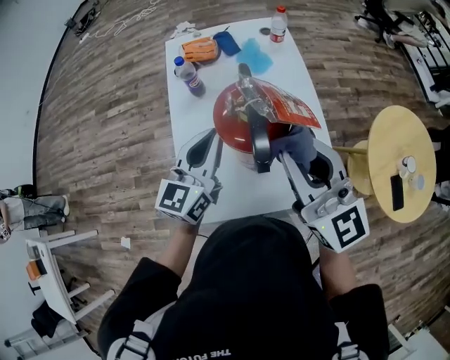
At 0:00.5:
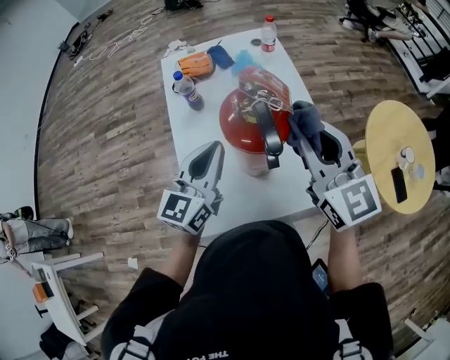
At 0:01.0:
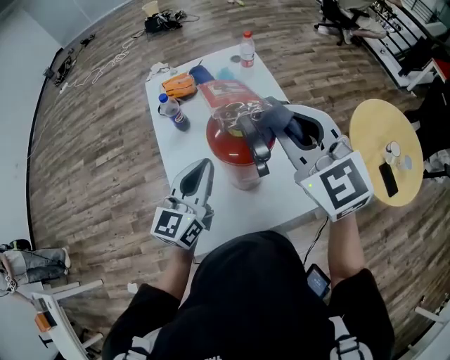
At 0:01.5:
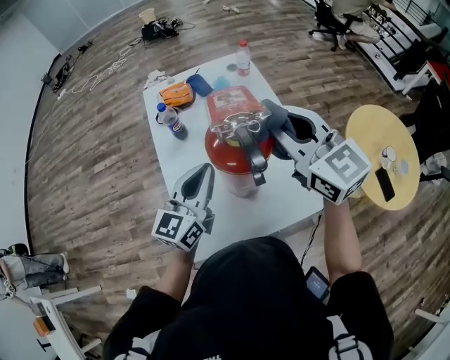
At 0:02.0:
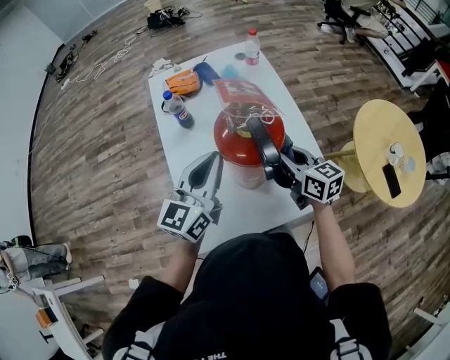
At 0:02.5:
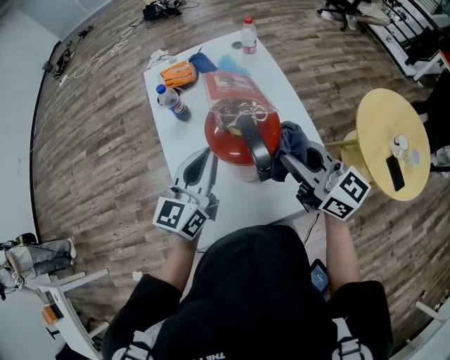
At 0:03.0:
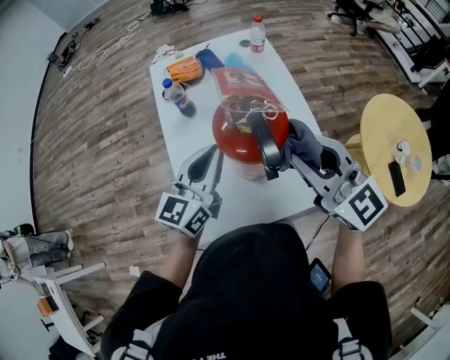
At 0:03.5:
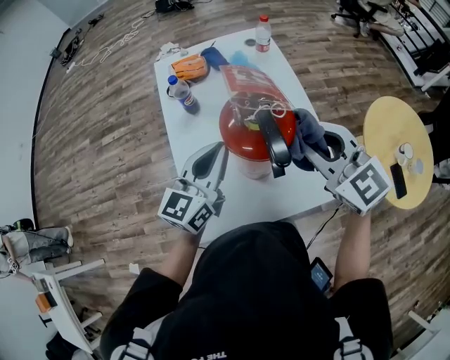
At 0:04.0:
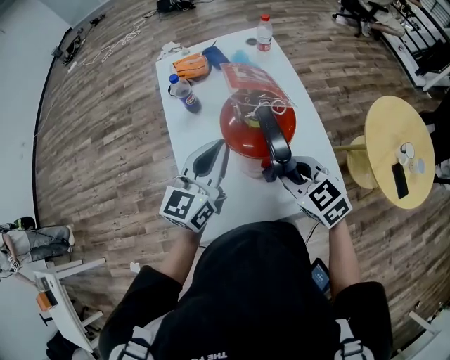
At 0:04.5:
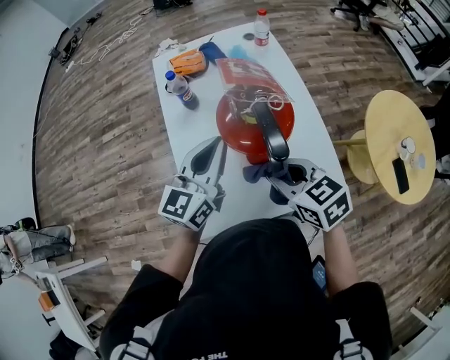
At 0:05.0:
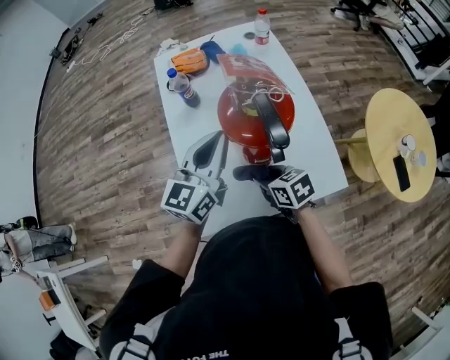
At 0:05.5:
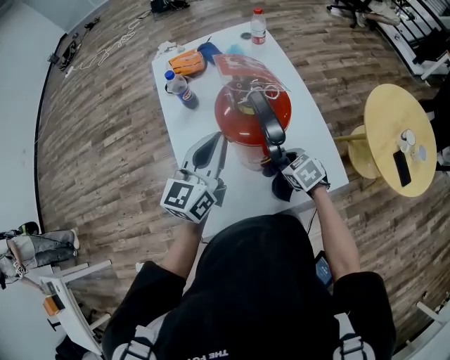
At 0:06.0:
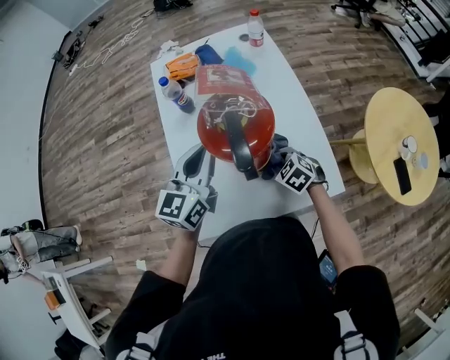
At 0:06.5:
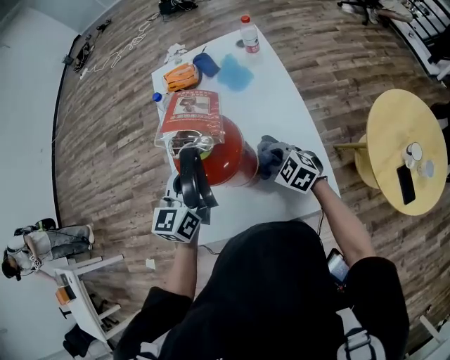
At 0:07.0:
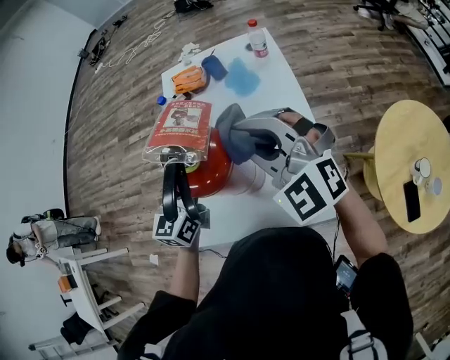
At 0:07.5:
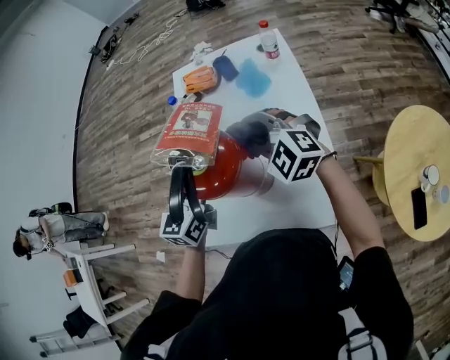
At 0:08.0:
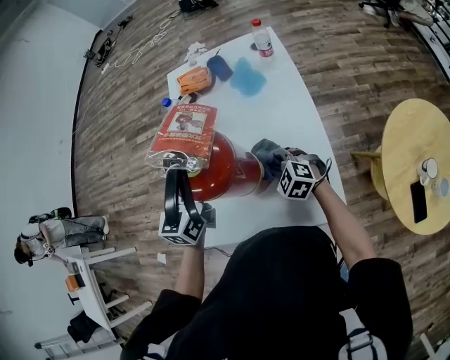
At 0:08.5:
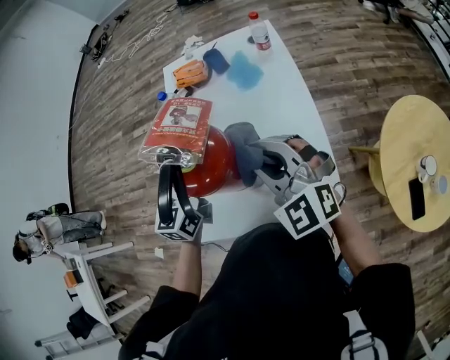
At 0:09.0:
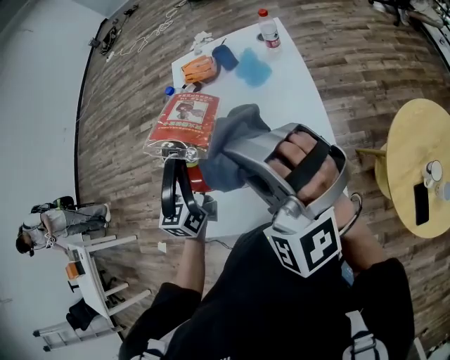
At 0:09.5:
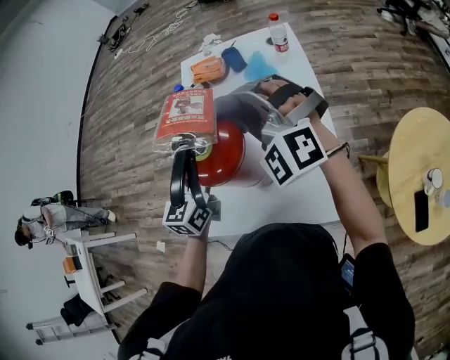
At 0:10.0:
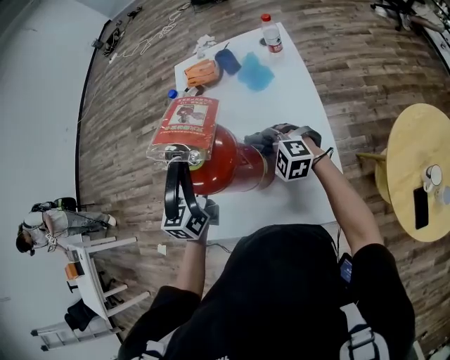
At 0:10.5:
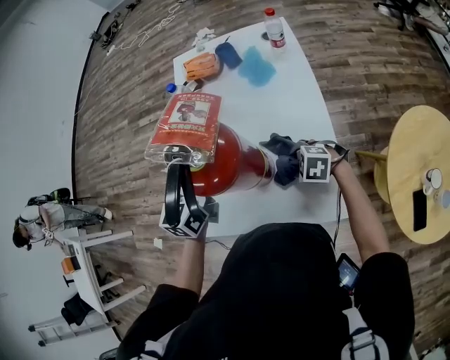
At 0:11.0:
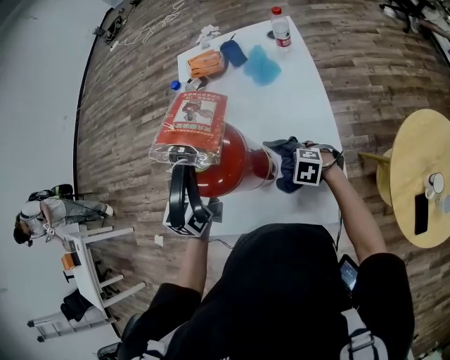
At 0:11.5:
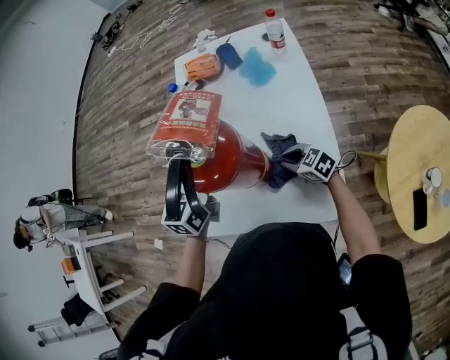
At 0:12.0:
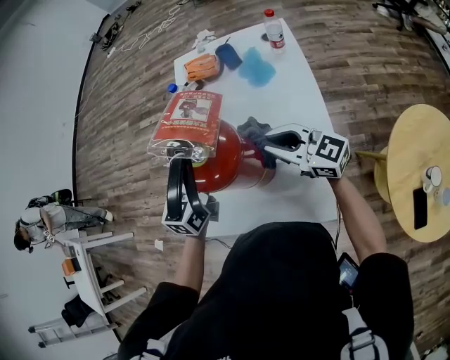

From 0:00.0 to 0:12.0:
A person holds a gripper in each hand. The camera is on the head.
From 0:00.0 to 0:02.0: The right gripper is displaced downward by some 20 cm, and swivels some 40 degrees.
From 0:02.0 to 0:04.0: The right gripper moves backward, roughly 5 cm, reaches about 20 cm upward, then returns, and rotates roughly 40 degrees.
From 0:04.0 to 0:06.0: The right gripper is displaced downward by some 20 cm, and changes its angle by roughly 20 degrees.
From 0:06.0 to 0:08.0: The right gripper is displaced forward by about 5 cm, travels upward and back again, about 35 cm each way, and changes its angle by about 30 degrees. Meanwhile the left gripper turns by some 20 degrees.
From 0:08.0 to 0:10.0: The right gripper moves roughly 35 cm upward and comes back.
From 0:10.0 to 0:12.0: The right gripper heads upward, covering some 10 cm, tips its fingers upward by some 40 degrees, and opens, then closes again.

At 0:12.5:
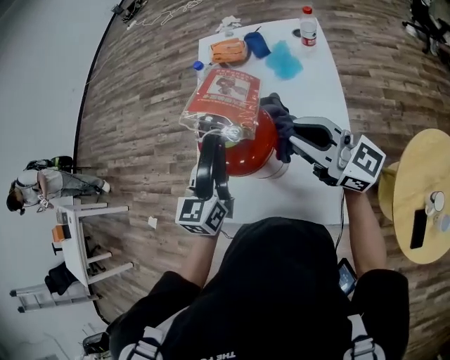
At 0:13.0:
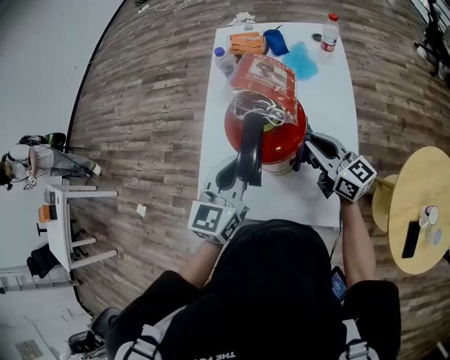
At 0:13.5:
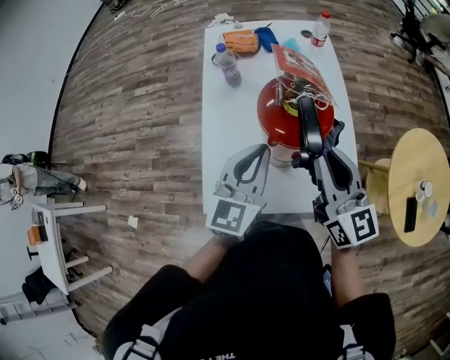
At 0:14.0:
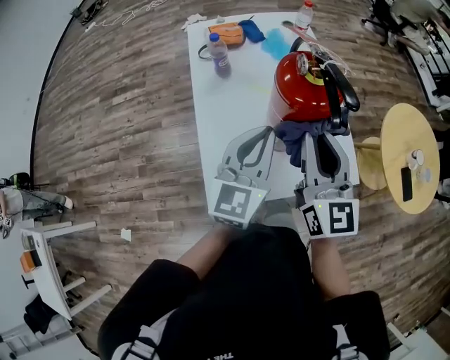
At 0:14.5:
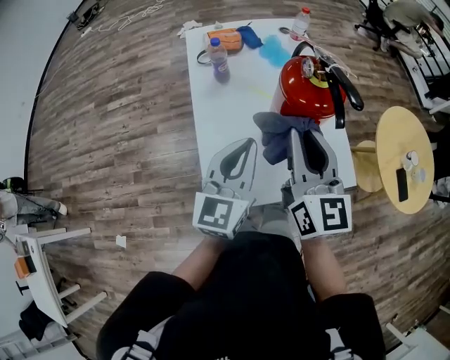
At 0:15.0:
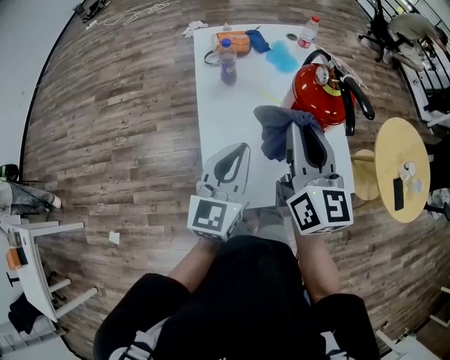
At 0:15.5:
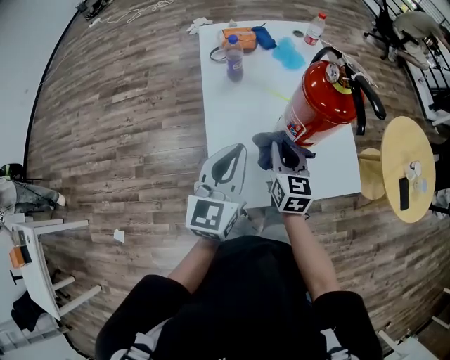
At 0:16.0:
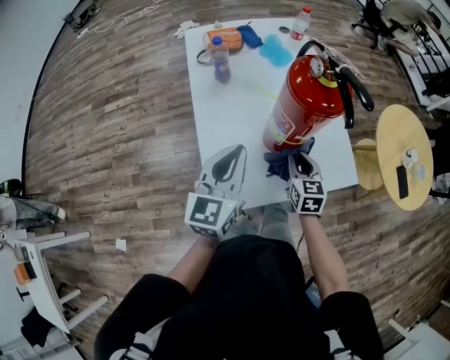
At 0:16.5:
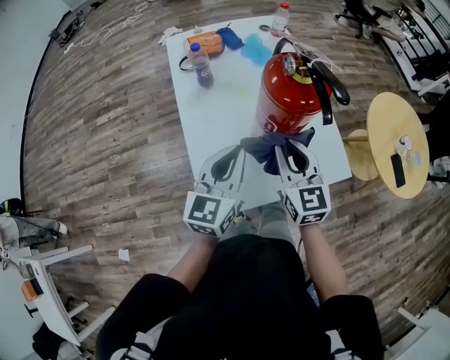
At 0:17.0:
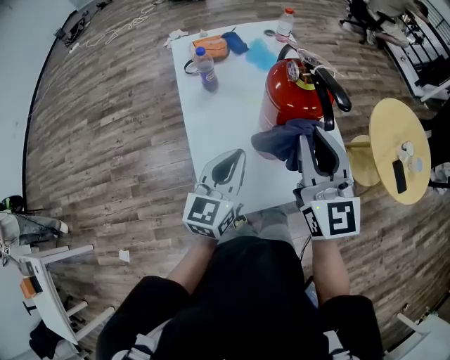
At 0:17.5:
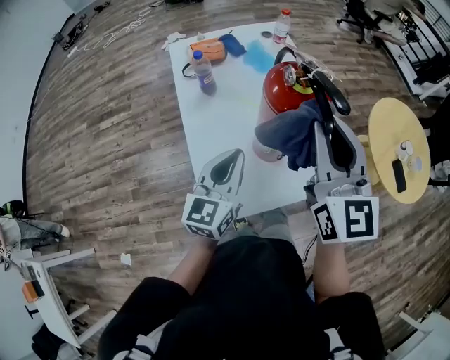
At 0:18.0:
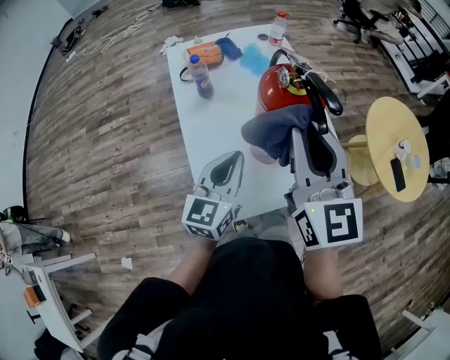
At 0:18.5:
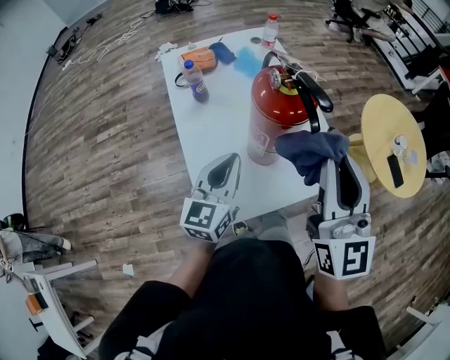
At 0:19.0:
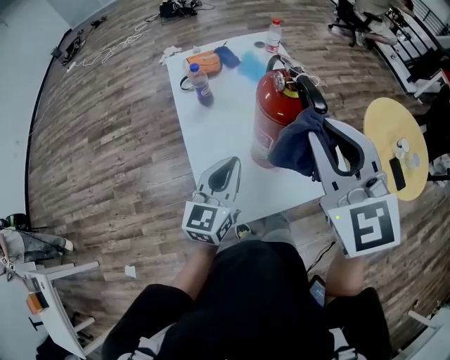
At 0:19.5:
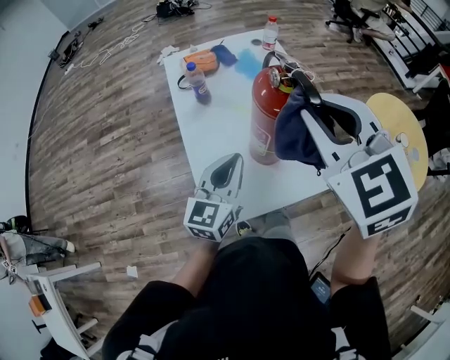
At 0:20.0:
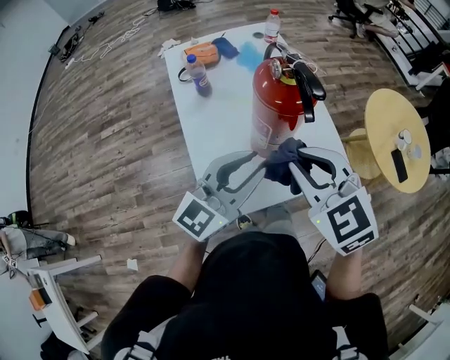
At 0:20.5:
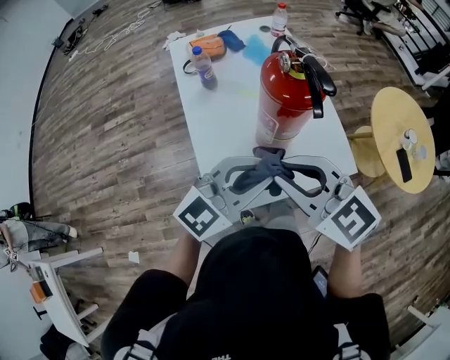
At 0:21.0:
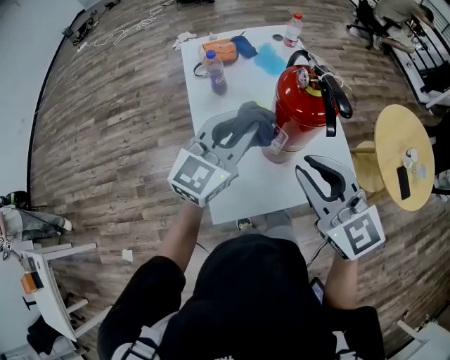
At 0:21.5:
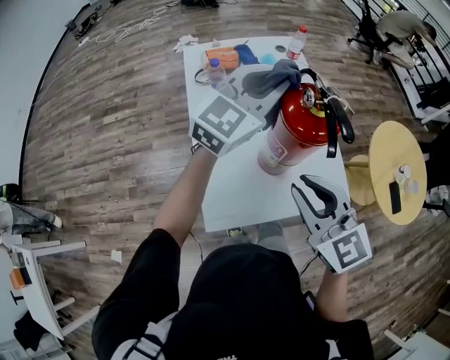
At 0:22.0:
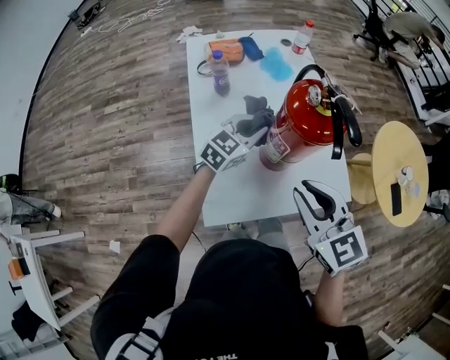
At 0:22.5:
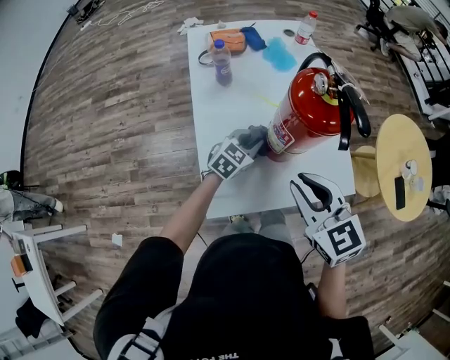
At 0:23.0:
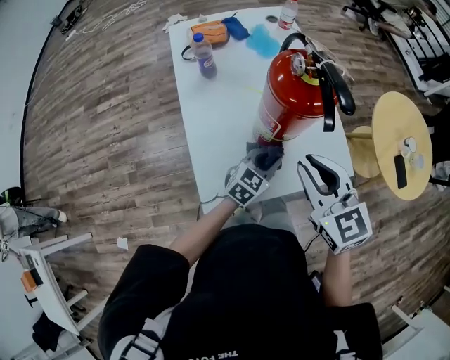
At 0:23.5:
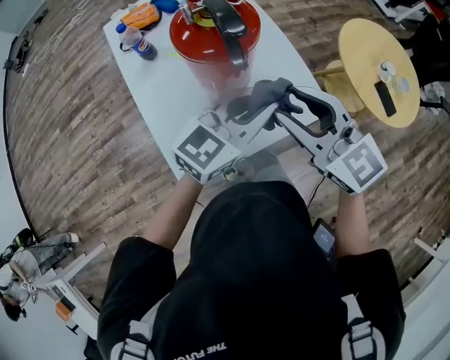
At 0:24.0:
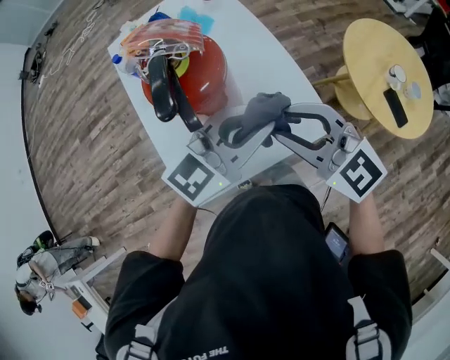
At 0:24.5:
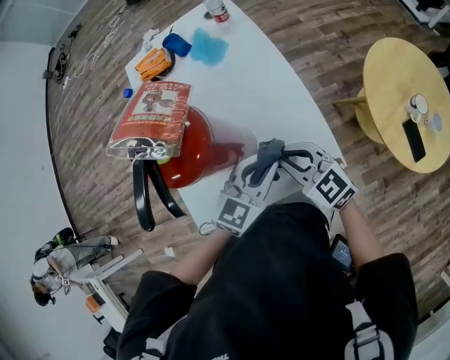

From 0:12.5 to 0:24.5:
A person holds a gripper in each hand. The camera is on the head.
From 0:12.5 to 0:14.5: The left gripper changes place by roughly 10 cm, and rotates approximately 20 degrees. The right gripper reaches some 10 cm downward, then returns, and swivels some 60 degrees.
From 0:14.5 to 0:16.5: The right gripper moves downward, some 10 cm.
From 0:16.5 to 0:18.5: The right gripper is displaced upward by about 20 cm, and turns by about 30 degrees.
From 0:18.5 to 0:20.5: The right gripper goes about 15 cm to the left and downward, and angles its fingers downward, by about 30 degrees. Meanwhile the left gripper moves backward, to the right and upward, about 10 cm, and turns by about 40 degrees.
From 0:20.5 to 0:22.5: The left gripper moves downward and forward, about 30 cm, and changes its angle by roughly 40 degrees; the right gripper goes approximately 5 cm downward.
From 0:22.5 to 0:24.5: The left gripper goes approximately 25 cm to the right and upward. The right gripper is displaced to the right, downward and forward by some 20 cm.

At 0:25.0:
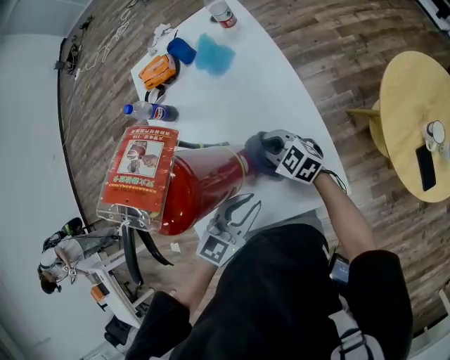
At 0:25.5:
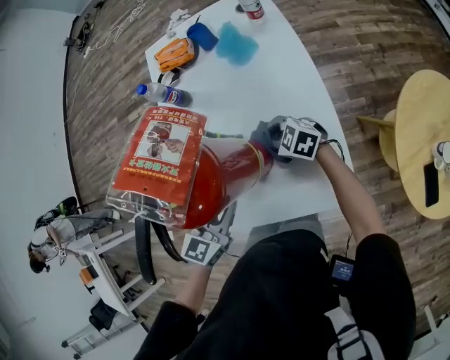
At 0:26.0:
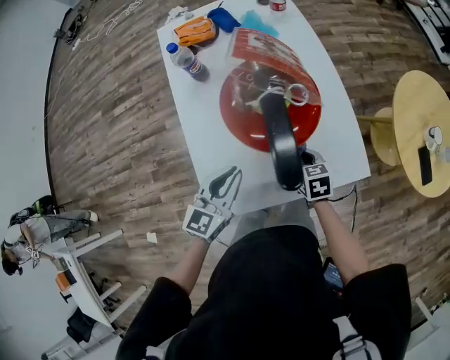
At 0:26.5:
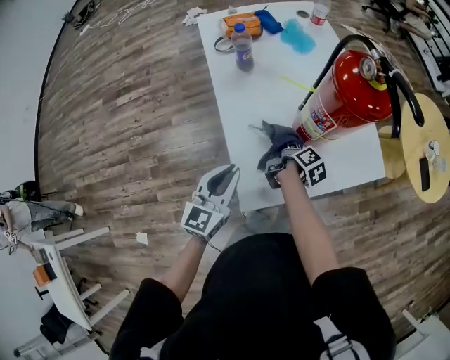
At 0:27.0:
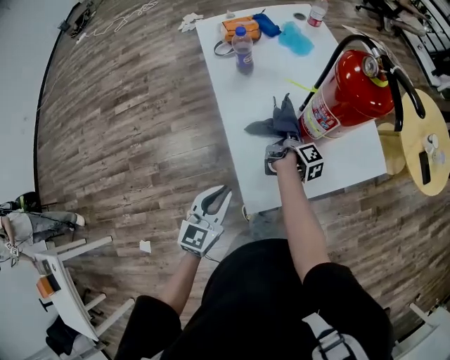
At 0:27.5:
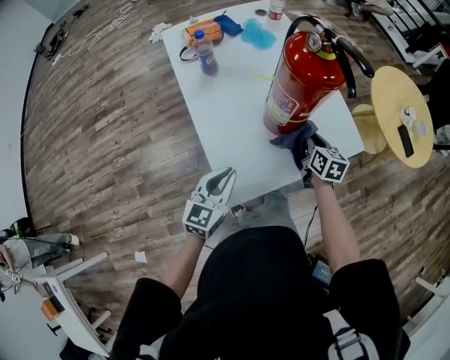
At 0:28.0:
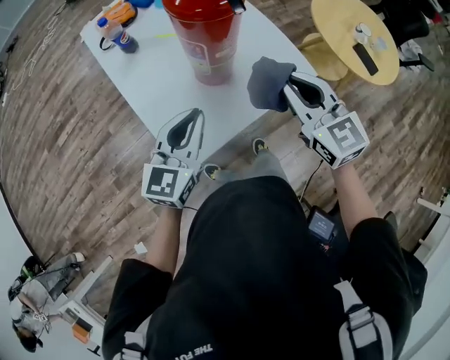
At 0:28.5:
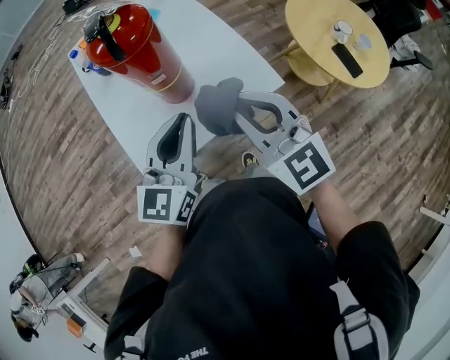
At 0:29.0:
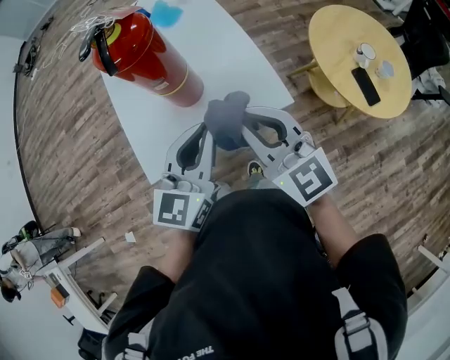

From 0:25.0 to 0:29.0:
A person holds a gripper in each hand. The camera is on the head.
From 0:25.0 to 0:27.0: The right gripper ends up approximately 20 cm from where it was, and twists some 100 degrees clockwise, seen from behind. Meanwhile the left gripper changes place by some 40 cm.
From 0:27.0 to 0:29.0: The left gripper is displaced to the right by about 40 cm, while the right gripper heads upward, to the right and backward, covering about 40 cm, and rolls counterclockwise, seen from behind, by some 90 degrees.
